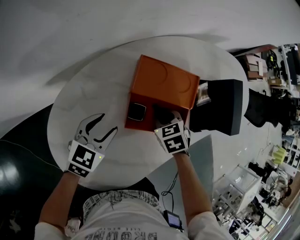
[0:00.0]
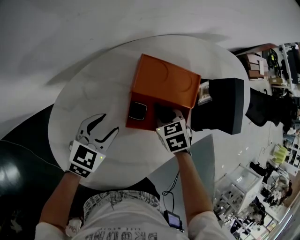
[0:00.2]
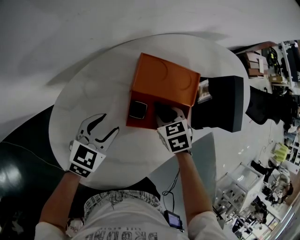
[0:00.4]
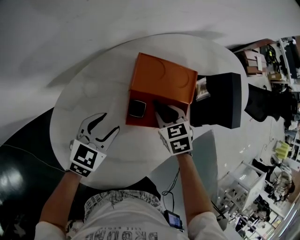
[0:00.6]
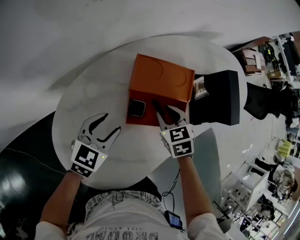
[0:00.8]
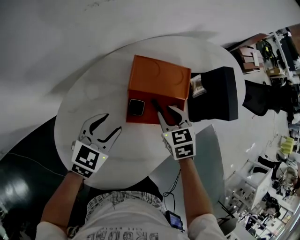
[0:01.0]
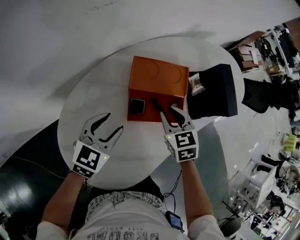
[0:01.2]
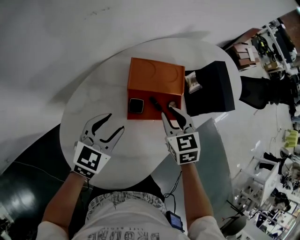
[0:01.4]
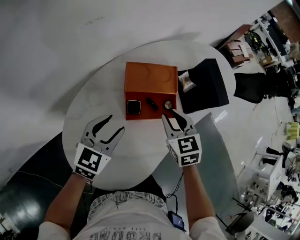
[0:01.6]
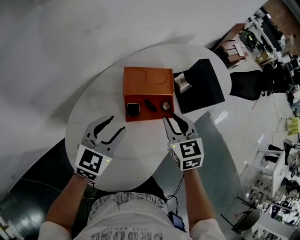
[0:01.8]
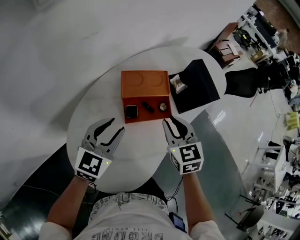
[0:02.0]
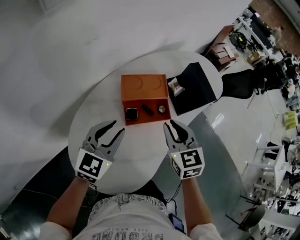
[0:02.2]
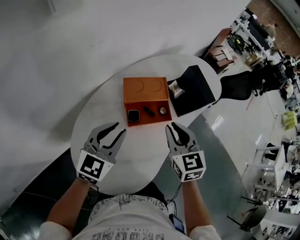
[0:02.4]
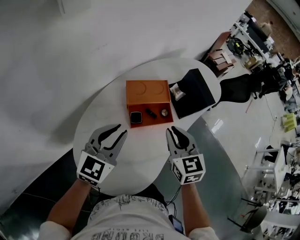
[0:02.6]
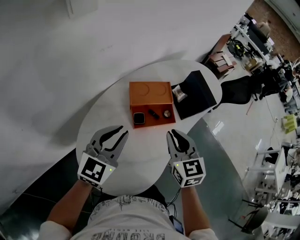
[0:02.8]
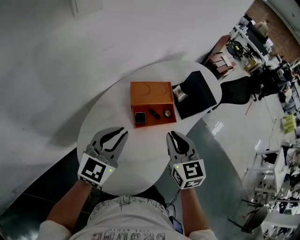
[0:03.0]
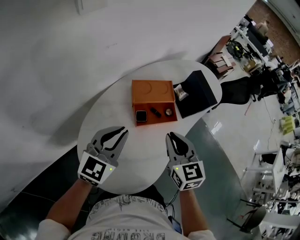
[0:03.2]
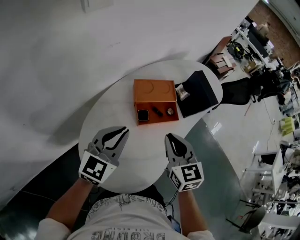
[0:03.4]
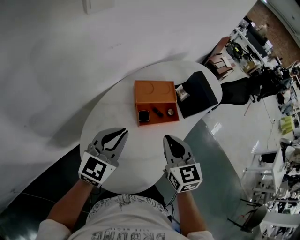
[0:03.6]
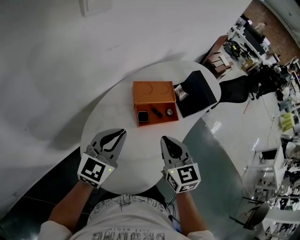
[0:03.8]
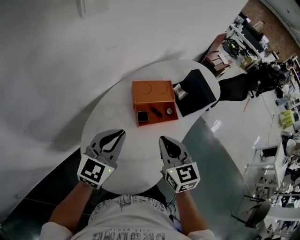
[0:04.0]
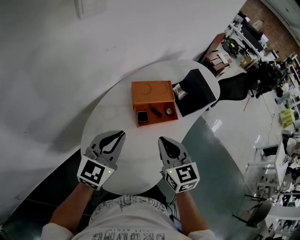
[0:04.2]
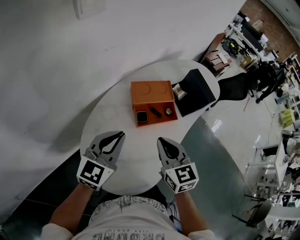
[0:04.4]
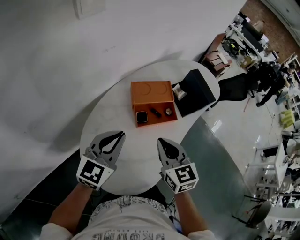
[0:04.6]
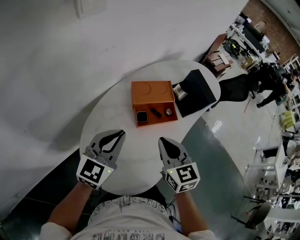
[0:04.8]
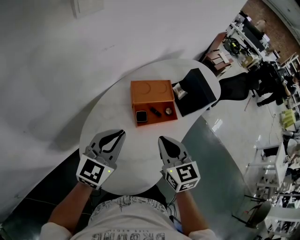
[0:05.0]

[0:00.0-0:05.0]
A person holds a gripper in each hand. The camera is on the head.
0:00.0 to 0:01.6: The grippers both shift upward by some 15 cm. The right gripper turns by about 30 degrees.
0:01.6 to 0:03.4: The left gripper travels upward and backward by some 15 cm, and closes its fingers, while the right gripper heads backward and upward, covering some 15 cm.
0:03.4 to 0:05.0: There are only small adjustments of the grippers.

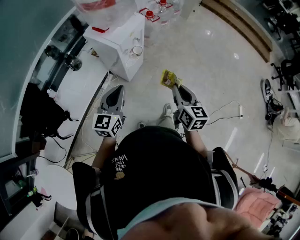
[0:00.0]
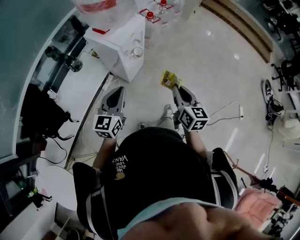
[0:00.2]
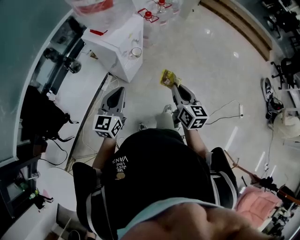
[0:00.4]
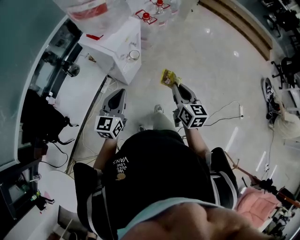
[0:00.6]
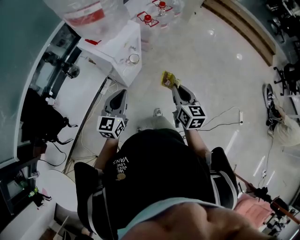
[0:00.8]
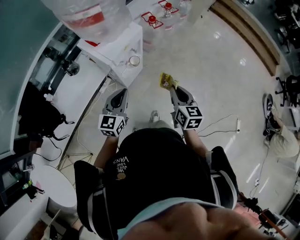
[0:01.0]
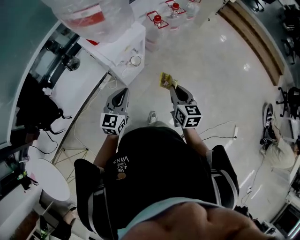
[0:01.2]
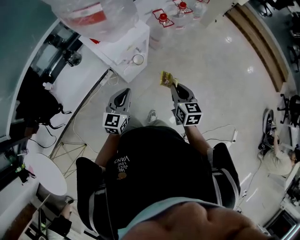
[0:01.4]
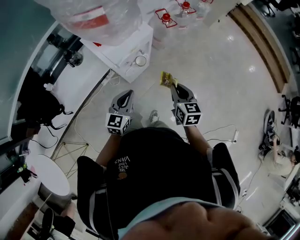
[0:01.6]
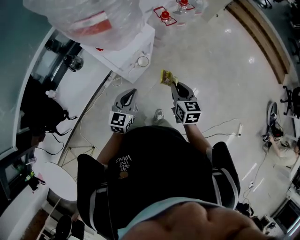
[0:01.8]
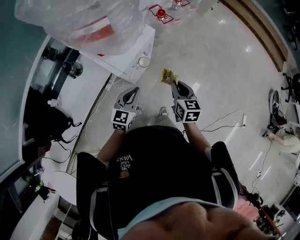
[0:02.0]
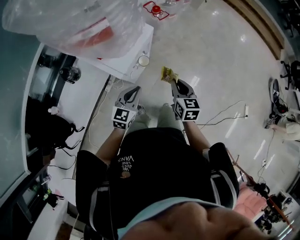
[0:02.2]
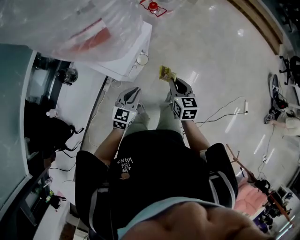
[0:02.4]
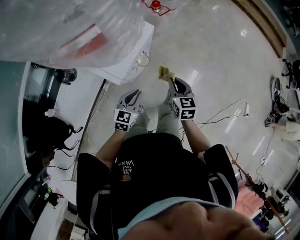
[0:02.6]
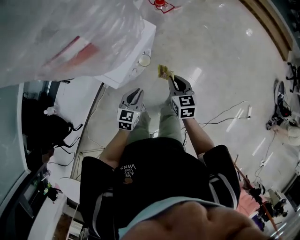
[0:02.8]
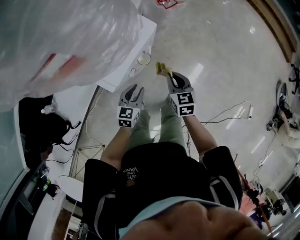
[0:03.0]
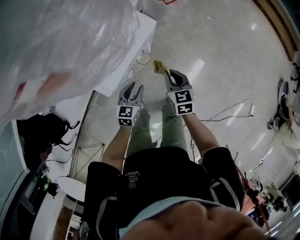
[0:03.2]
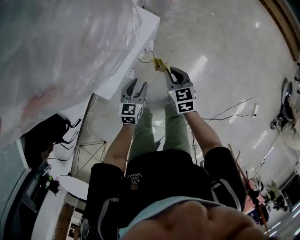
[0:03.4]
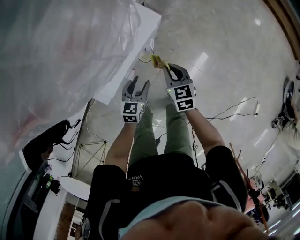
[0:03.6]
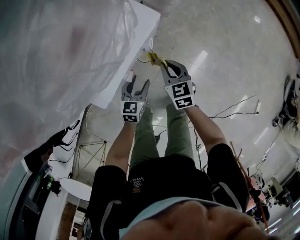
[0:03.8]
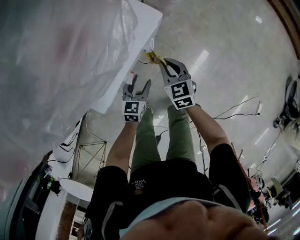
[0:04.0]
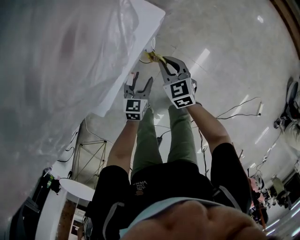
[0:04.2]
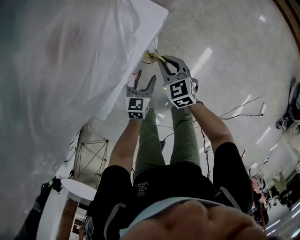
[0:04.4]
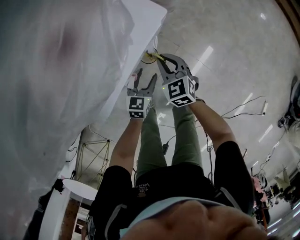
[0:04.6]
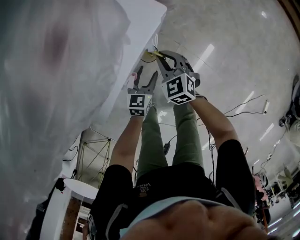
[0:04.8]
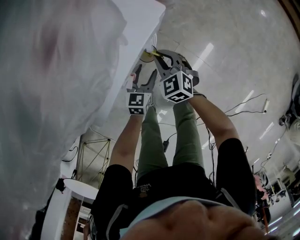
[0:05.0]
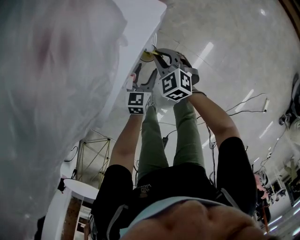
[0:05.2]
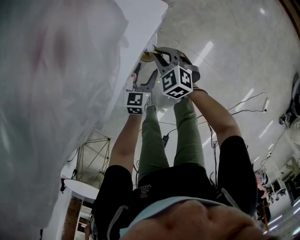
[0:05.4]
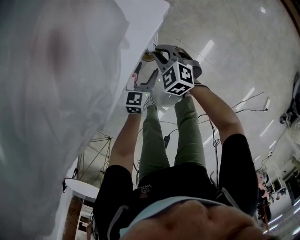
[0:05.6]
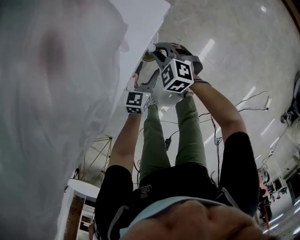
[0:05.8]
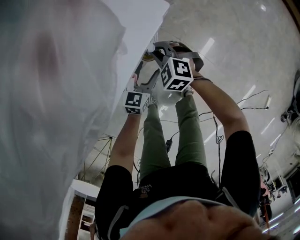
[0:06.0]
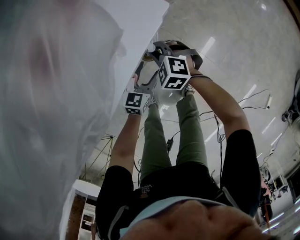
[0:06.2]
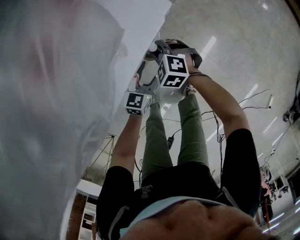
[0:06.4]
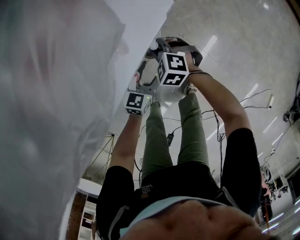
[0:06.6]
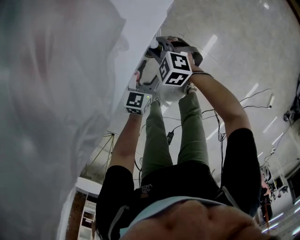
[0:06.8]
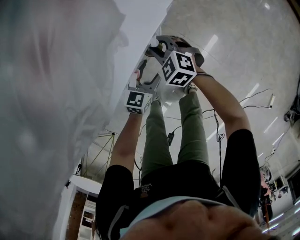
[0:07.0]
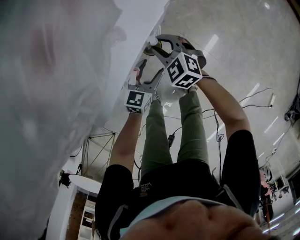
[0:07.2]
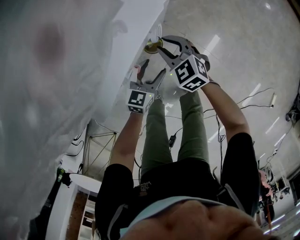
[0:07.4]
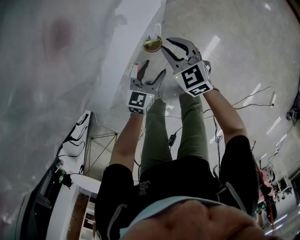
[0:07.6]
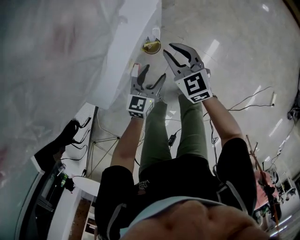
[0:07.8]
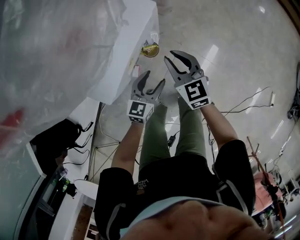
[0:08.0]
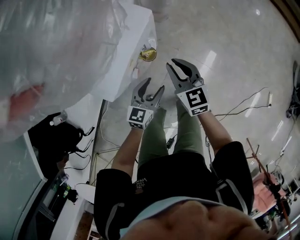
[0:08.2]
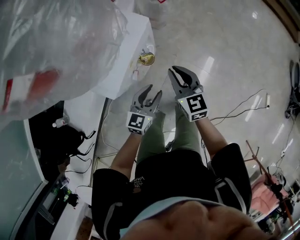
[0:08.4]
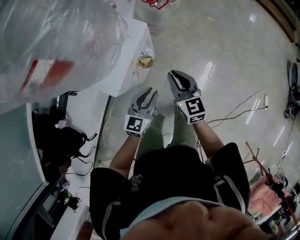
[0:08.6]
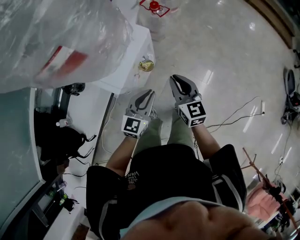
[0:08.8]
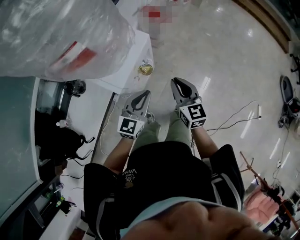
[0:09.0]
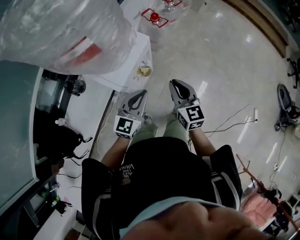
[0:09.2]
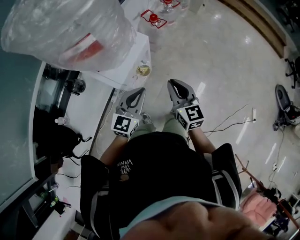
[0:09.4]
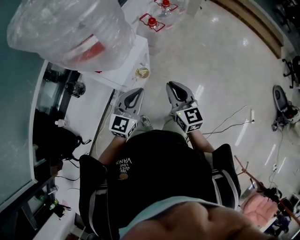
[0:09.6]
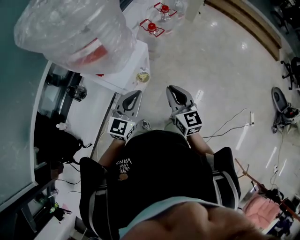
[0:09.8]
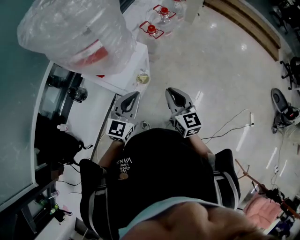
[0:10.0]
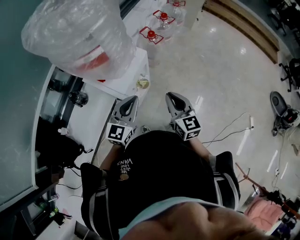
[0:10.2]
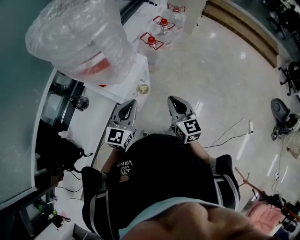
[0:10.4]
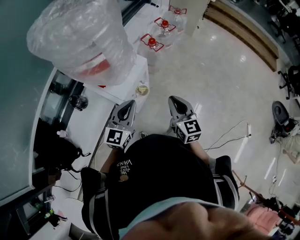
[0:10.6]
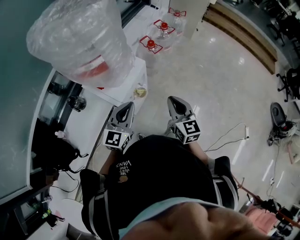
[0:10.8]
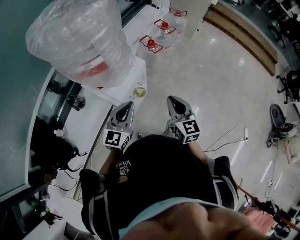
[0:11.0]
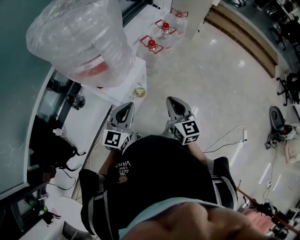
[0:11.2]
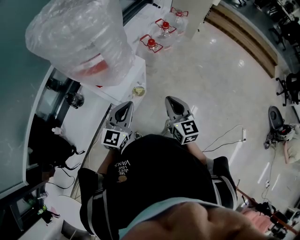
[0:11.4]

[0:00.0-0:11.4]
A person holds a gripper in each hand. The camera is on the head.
0:00.0 to 0:01.4: The left gripper shifts roughly 20 cm forward, downward and to the right; the right gripper heads forward, covering some 25 cm.
0:01.4 to 0:02.8: The left gripper goes roughly 20 cm downward and forward, and swivels roughly 20 degrees; the right gripper goes roughly 20 cm downward, forward and to the left.
0:02.8 to 0:04.2: Both grippers move downward and forward, some 20 cm. The left gripper opens.
0:04.2 to 0:05.6: The right gripper travels downward by approximately 5 cm, and rotates roughly 30 degrees, while the left gripper shifts by approximately 5 cm.
0:05.6 to 0:07.2: The grippers move only a little.
0:07.2 to 0:08.6: The right gripper heads upward, backward and to the right, covering approximately 30 cm, and rotates approximately 50 degrees; the left gripper moves upward, about 25 cm, and closes its fingers.
0:08.6 to 0:10.0: The left gripper is displaced upward by some 25 cm; the right gripper heads upward and backward, covering about 20 cm.
0:10.0 to 0:11.4: There are only small adjustments of the grippers.

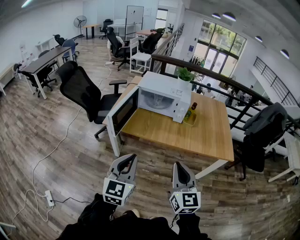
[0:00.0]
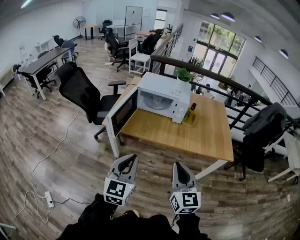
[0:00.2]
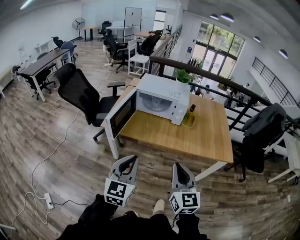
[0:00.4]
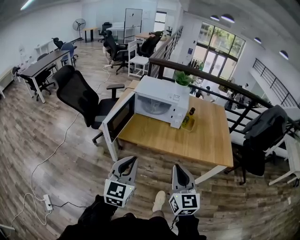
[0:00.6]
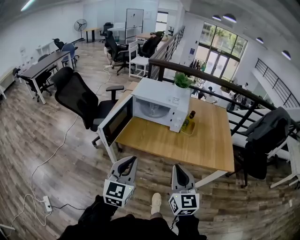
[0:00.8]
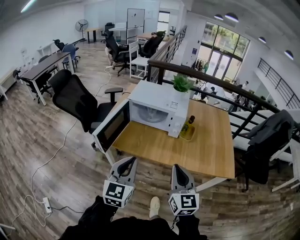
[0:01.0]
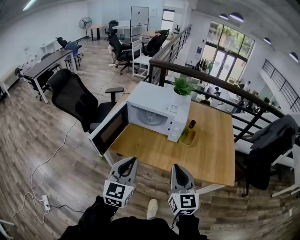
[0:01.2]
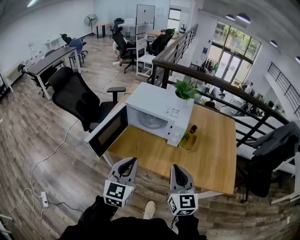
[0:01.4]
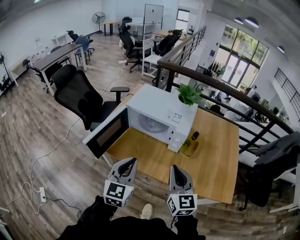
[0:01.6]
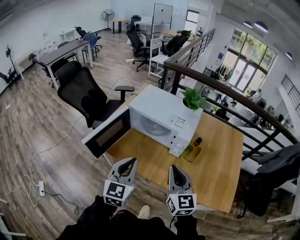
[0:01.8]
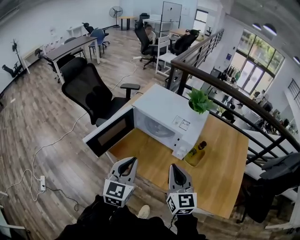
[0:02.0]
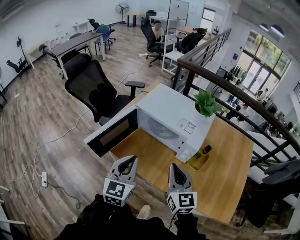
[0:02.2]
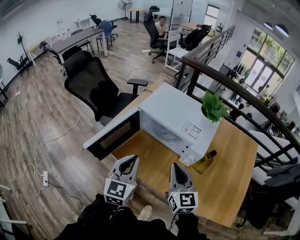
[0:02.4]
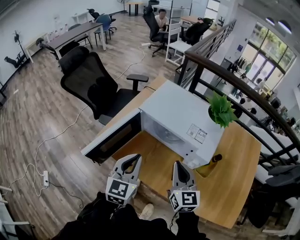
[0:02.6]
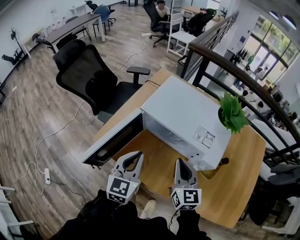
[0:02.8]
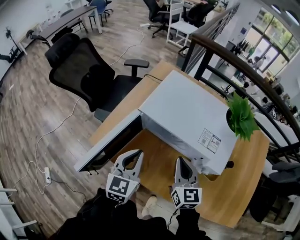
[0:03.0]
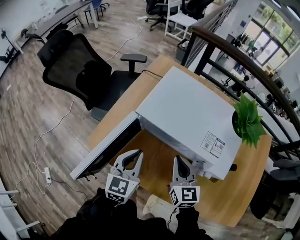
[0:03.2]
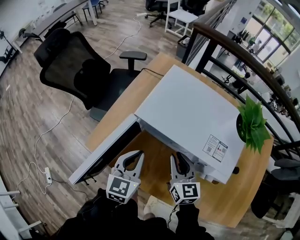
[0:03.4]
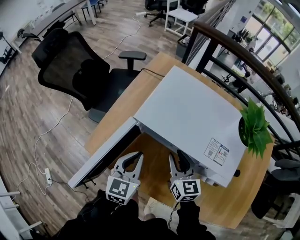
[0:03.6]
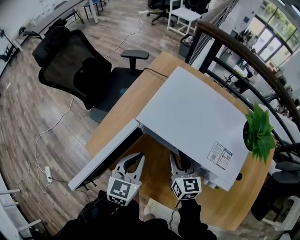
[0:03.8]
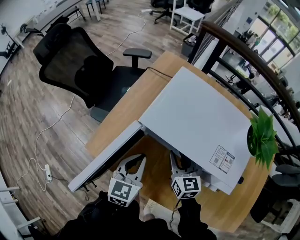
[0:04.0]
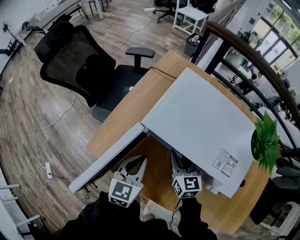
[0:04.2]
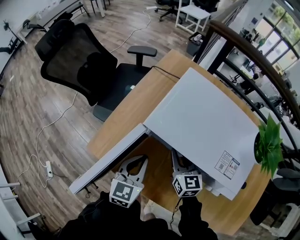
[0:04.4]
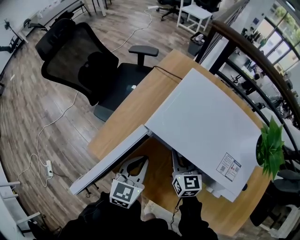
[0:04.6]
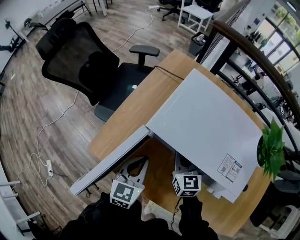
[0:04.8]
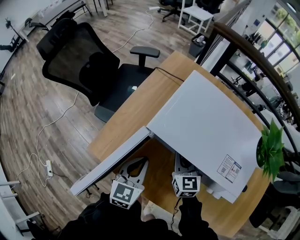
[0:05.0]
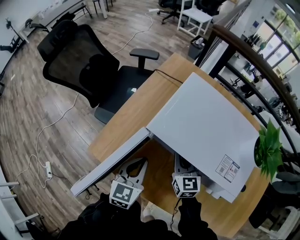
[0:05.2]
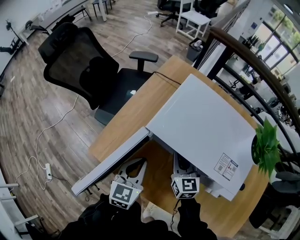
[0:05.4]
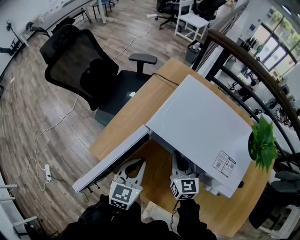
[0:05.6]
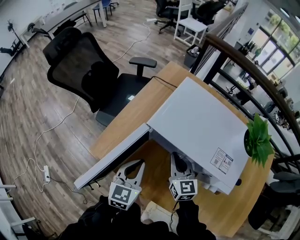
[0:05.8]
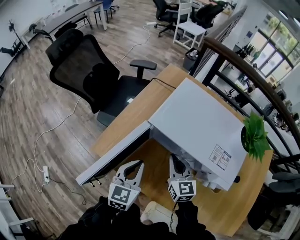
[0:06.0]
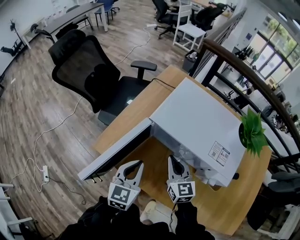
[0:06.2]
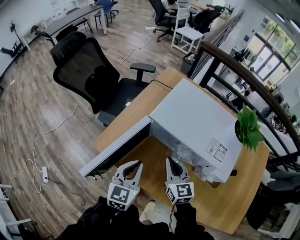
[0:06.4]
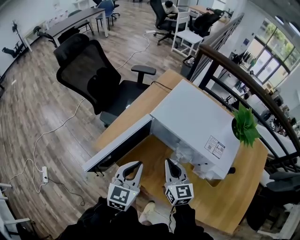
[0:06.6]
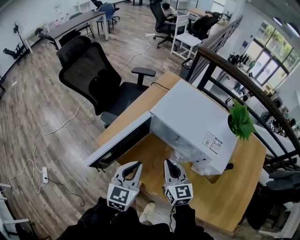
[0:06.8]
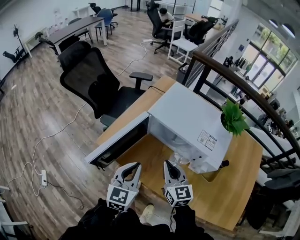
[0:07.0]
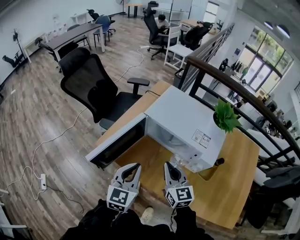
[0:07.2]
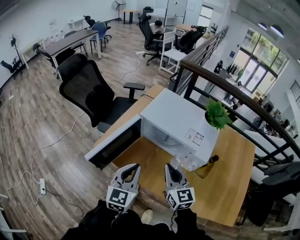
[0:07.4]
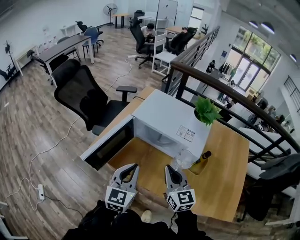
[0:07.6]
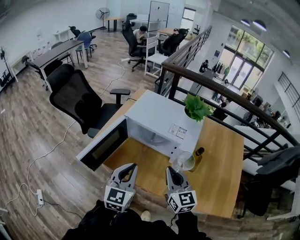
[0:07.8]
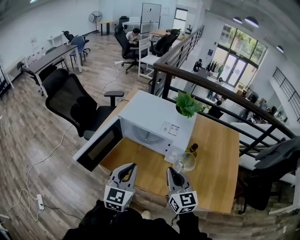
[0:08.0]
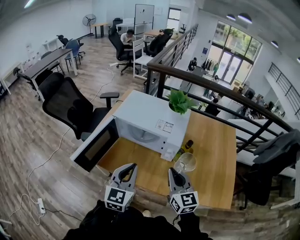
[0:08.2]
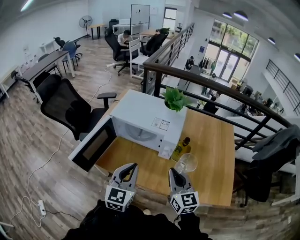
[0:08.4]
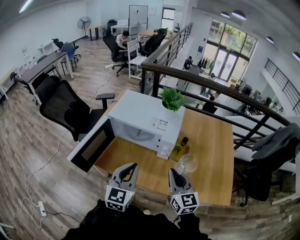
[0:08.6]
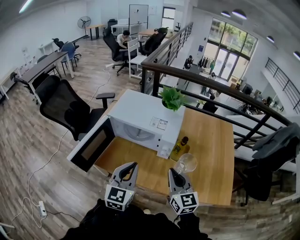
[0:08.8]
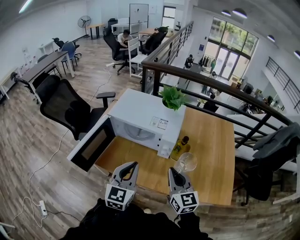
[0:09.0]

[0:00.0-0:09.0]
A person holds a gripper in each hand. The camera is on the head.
0:00.0 to 0:01.6: The right gripper shifts some 30 cm forward, while the left gripper moves forward and to the right, roughly 30 cm.
0:01.6 to 0:03.0: Both grippers move forward and downward, roughly 30 cm.
0:03.0 to 0:04.4: The right gripper heads forward, downward and to the left, covering approximately 20 cm, and opens its fingers. The left gripper moves downward and forward, roughly 15 cm.
0:04.4 to 0:06.0: The left gripper moves backward, roughly 5 cm; the right gripper goes approximately 10 cm backward and upward, and closes its fingers.
0:06.0 to 0:07.6: Both grippers move backward and upward, approximately 25 cm.
0:07.6 to 0:09.0: The left gripper is displaced to the right by some 10 cm, while the right gripper is displaced to the right and backward by roughly 15 cm.
